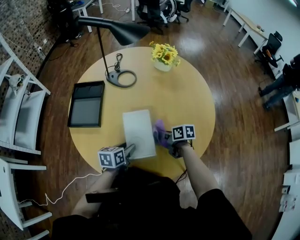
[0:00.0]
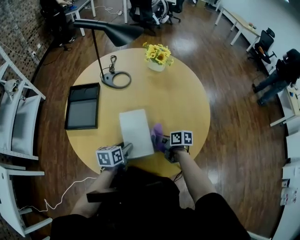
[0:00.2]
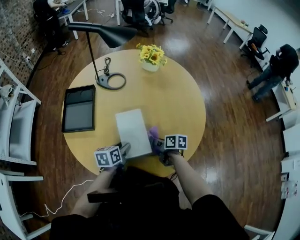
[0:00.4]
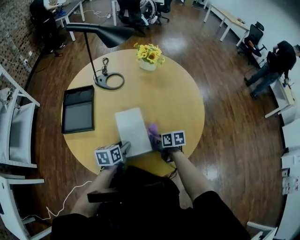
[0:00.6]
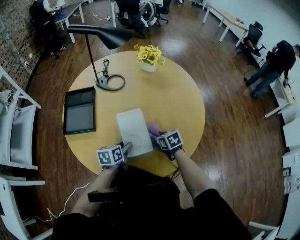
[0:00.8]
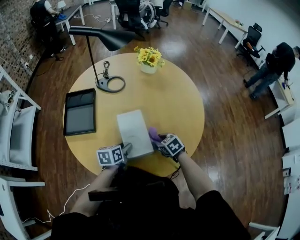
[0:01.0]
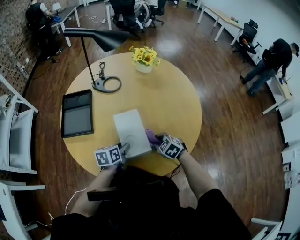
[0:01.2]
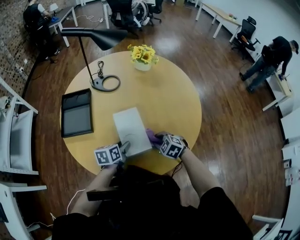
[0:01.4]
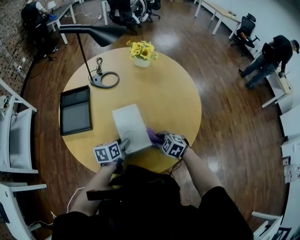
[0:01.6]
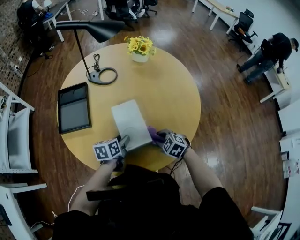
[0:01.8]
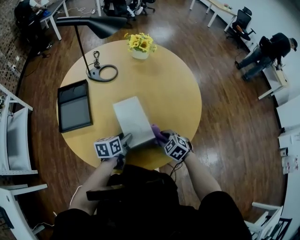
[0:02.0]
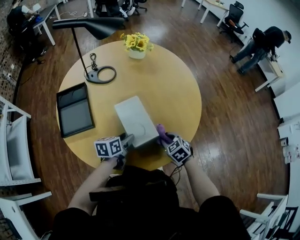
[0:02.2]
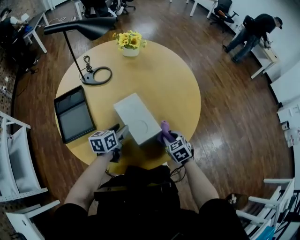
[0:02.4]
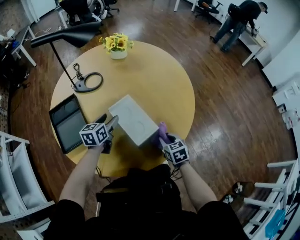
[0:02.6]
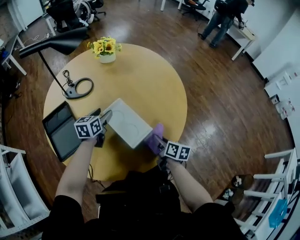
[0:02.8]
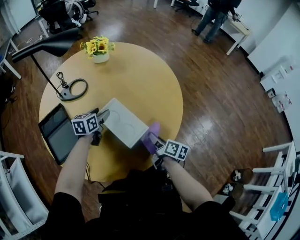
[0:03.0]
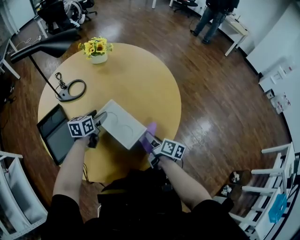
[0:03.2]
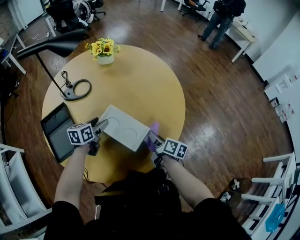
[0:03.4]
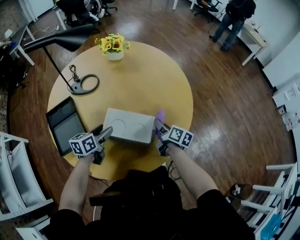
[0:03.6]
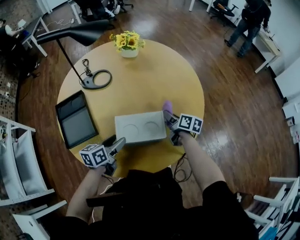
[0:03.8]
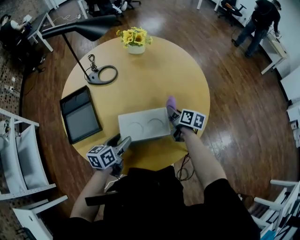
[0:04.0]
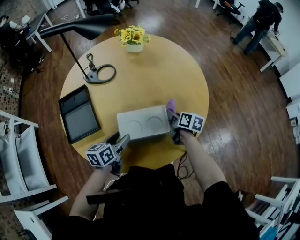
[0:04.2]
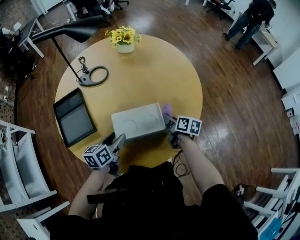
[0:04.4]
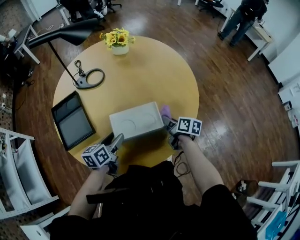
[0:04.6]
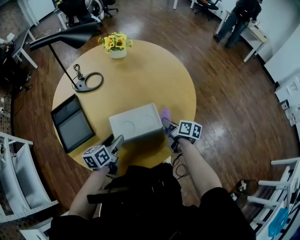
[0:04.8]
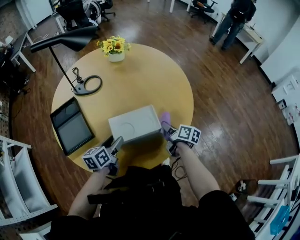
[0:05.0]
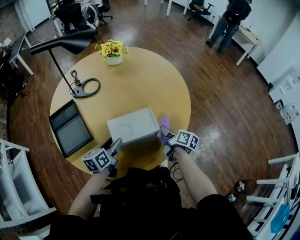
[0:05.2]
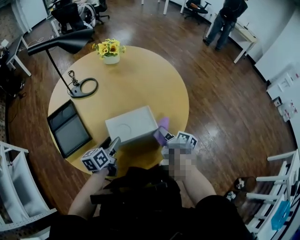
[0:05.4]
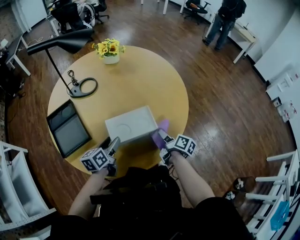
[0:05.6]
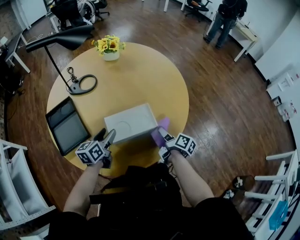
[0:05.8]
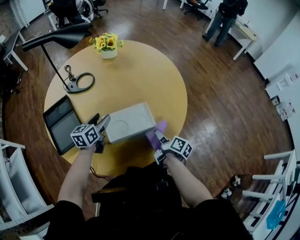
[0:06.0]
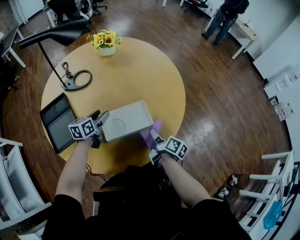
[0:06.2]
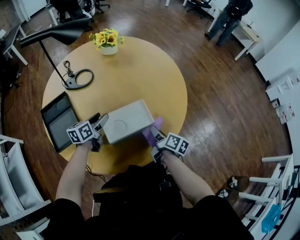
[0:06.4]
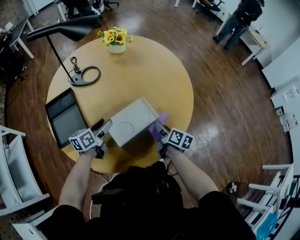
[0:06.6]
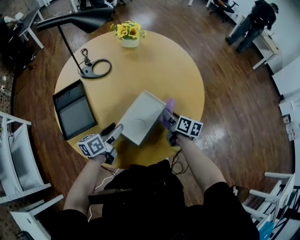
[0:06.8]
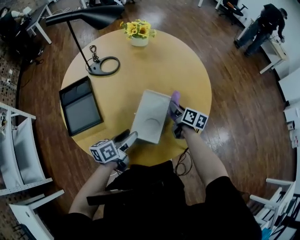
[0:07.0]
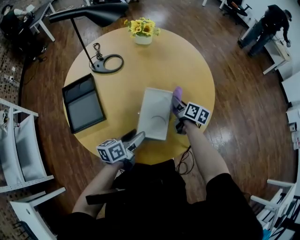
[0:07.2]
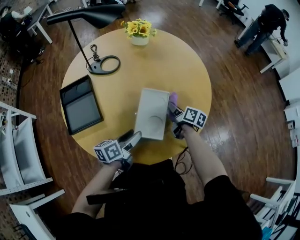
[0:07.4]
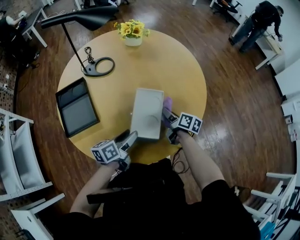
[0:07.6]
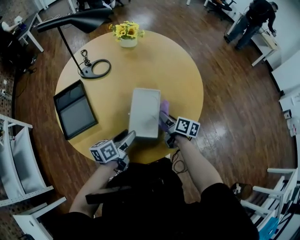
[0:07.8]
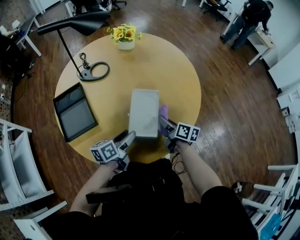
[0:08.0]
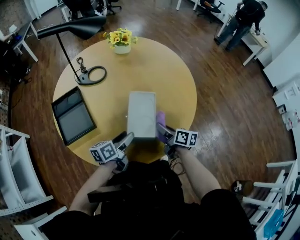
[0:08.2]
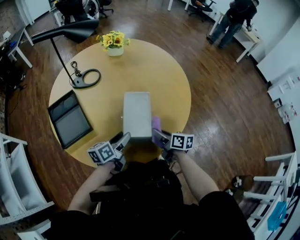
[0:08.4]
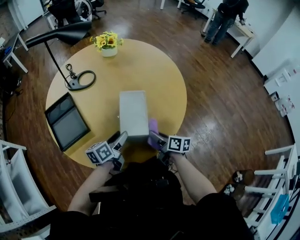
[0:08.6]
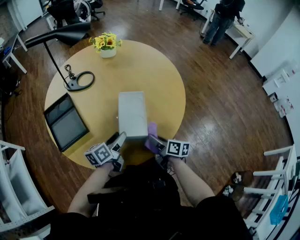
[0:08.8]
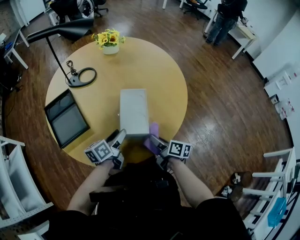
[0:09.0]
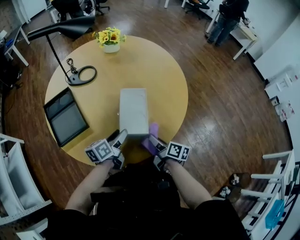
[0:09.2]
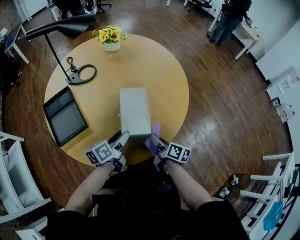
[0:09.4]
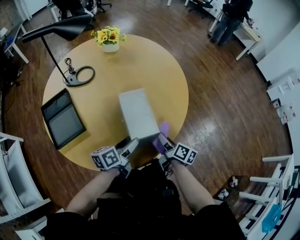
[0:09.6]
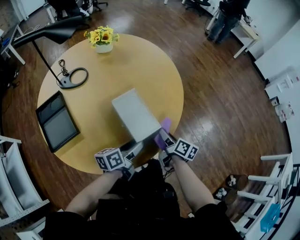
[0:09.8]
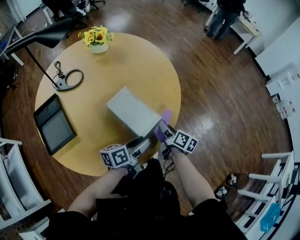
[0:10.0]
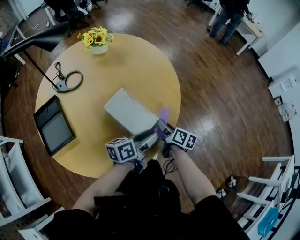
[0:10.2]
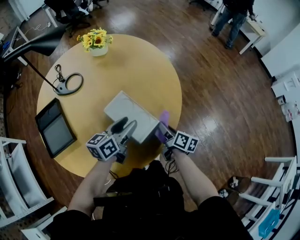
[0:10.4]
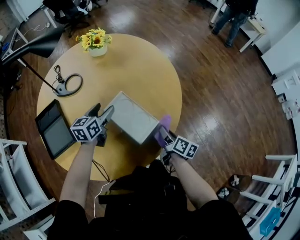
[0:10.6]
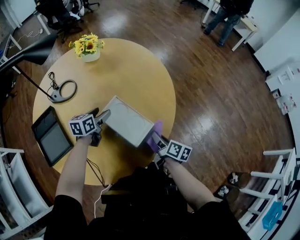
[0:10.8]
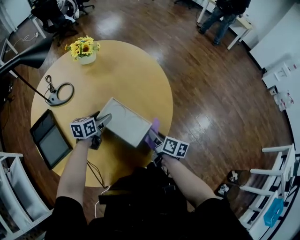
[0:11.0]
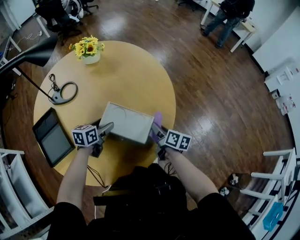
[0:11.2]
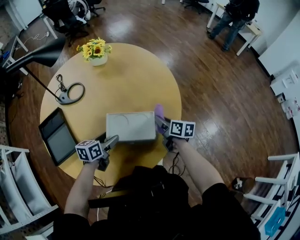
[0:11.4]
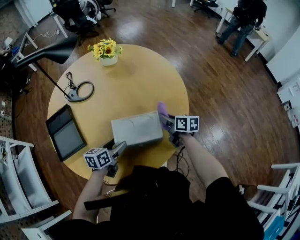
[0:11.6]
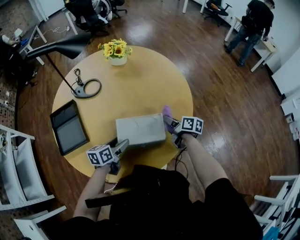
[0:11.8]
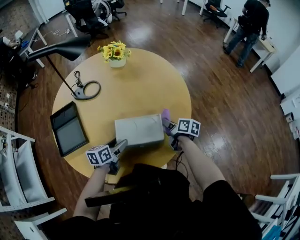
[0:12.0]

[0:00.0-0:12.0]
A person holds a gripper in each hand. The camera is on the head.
0:00.0 to 0:01.6: The right gripper travels backward by approximately 10 cm, and rolls counterclockwise, seen from behind, by some 60 degrees.
0:01.6 to 0:03.0: The right gripper ends up approximately 5 cm from where it was, and rolls clockwise, seen from behind, by about 100 degrees. Meanwhile the left gripper changes place by roughly 15 cm, and rotates about 30 degrees.
0:03.0 to 0:04.4: The left gripper moves backward, some 15 cm, and changes its angle by approximately 20 degrees. The right gripper is displaced forward by approximately 10 cm, and rotates roughly 20 degrees.
0:04.4 to 0:06.0: The left gripper moves forward, approximately 10 cm. Meanwhile the right gripper shifts some 10 cm backward, and swivels about 30 degrees.
0:06.0 to 0:07.6: The left gripper shifts approximately 15 cm backward and to the right, and changes its angle by about 30 degrees; the right gripper heads forward, covering about 10 cm, and swivels some 20 degrees.
0:07.6 to 0:09.0: The right gripper is displaced backward by some 15 cm.
0:09.0 to 0:10.4: The right gripper is displaced forward and to the right by roughly 20 cm; the left gripper heads to the right, forward and upward, covering roughly 20 cm.
0:10.4 to 0:12.0: The right gripper goes about 10 cm forward; the left gripper shifts roughly 15 cm to the left and downward, and travels forward and back again, approximately 10 cm each way.

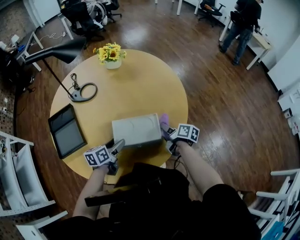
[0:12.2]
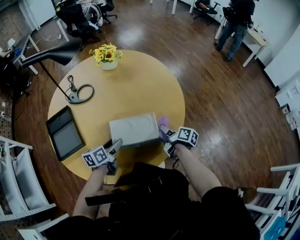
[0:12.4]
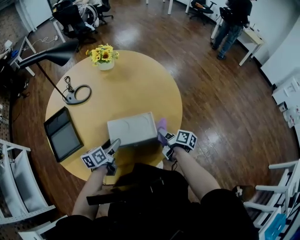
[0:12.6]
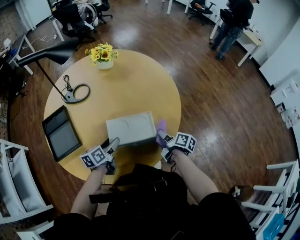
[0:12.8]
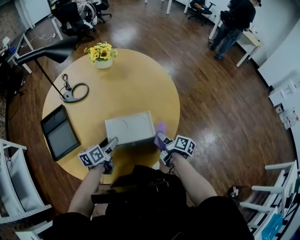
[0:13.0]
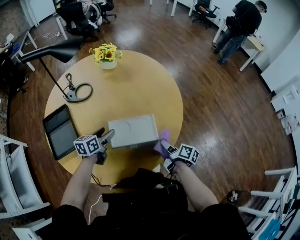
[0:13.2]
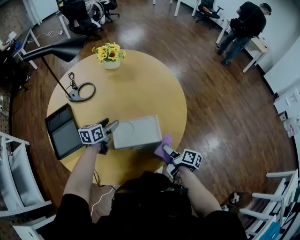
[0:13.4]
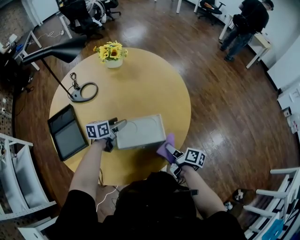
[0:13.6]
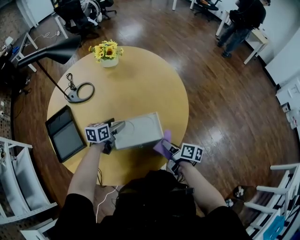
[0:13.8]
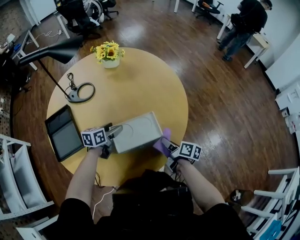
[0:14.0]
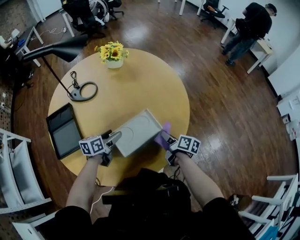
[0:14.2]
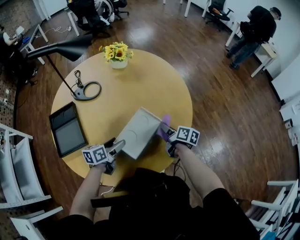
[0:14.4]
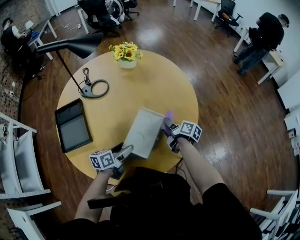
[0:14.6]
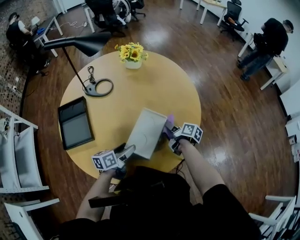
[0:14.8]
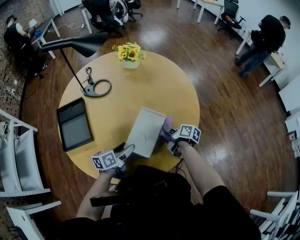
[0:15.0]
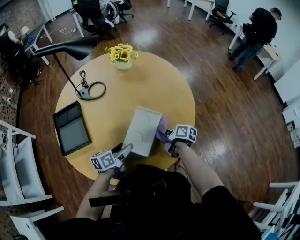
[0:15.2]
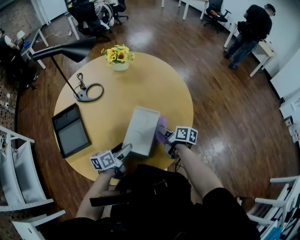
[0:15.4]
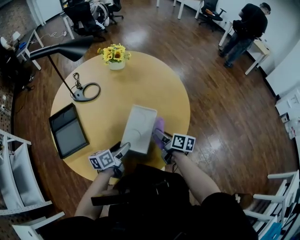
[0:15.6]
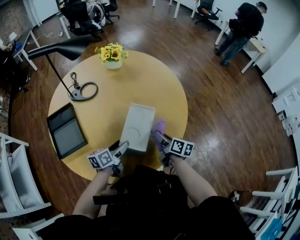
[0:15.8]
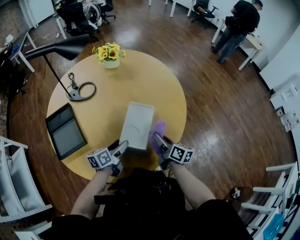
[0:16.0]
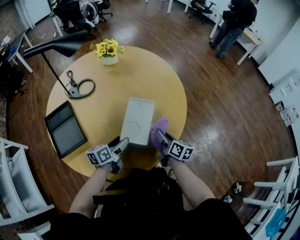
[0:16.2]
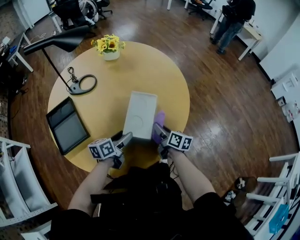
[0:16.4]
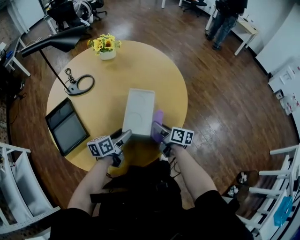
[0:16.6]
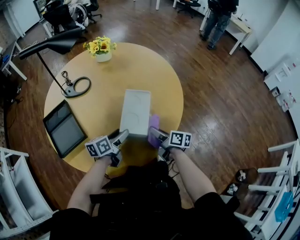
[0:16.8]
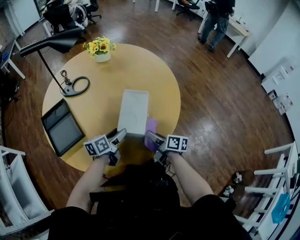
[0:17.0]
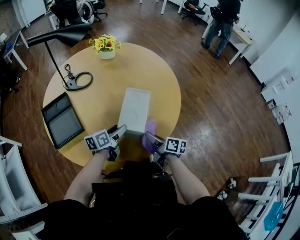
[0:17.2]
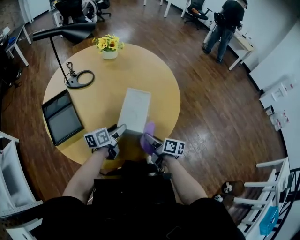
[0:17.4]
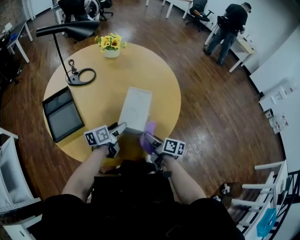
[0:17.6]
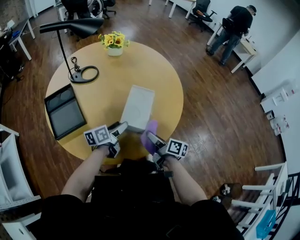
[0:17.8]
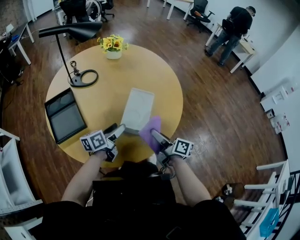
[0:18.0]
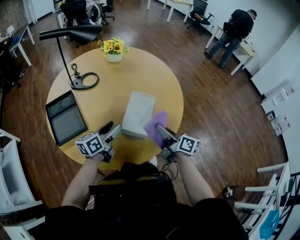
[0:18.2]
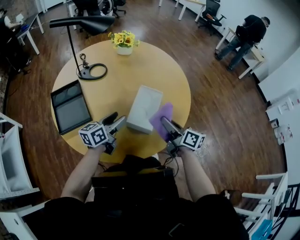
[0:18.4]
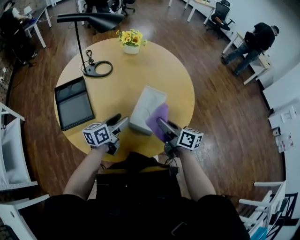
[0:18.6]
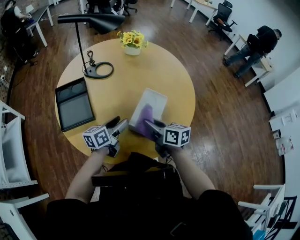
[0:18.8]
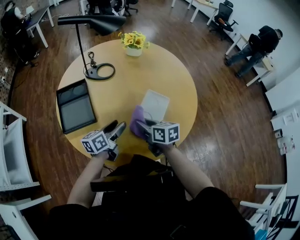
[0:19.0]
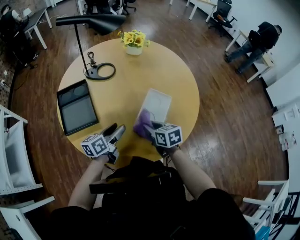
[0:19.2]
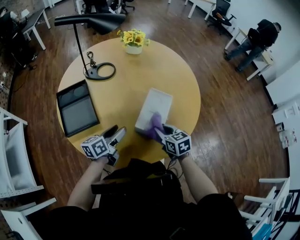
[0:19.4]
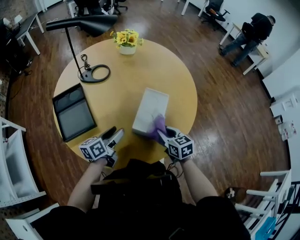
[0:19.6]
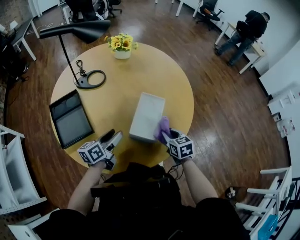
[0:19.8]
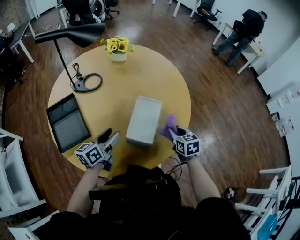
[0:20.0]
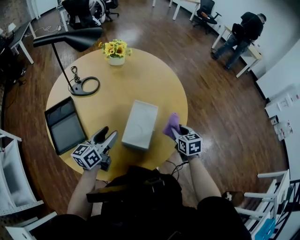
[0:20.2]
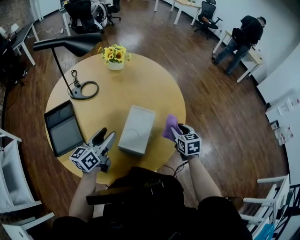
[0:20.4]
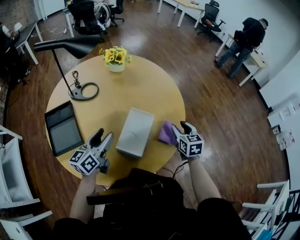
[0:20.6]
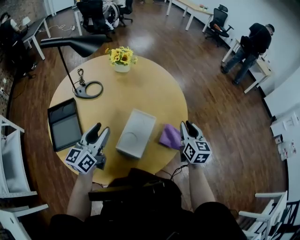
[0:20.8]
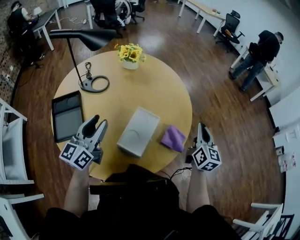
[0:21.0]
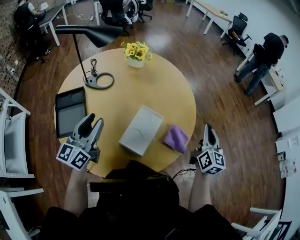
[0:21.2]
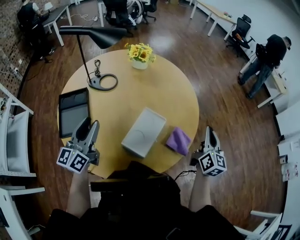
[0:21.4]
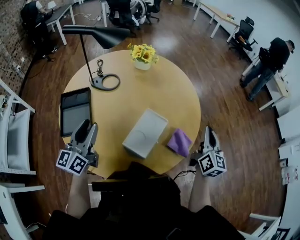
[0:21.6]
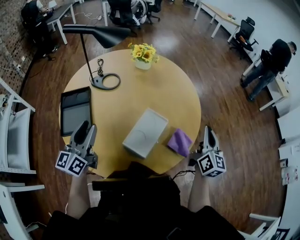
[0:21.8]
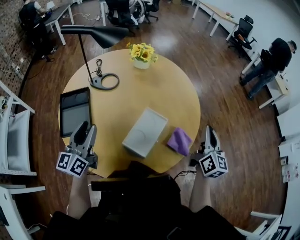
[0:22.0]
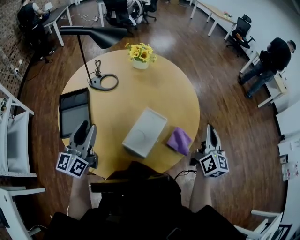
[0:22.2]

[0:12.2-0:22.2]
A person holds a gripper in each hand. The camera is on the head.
0:12.2 to 0:13.6: The left gripper goes about 10 cm forward; the right gripper moves backward, roughly 10 cm.
0:13.6 to 0:15.0: The left gripper shifts some 15 cm backward, and swivels approximately 20 degrees, while the right gripper heads forward, covering roughly 15 cm.
0:15.0 to 0:16.4: The right gripper heads backward, covering roughly 10 cm, and swivels approximately 20 degrees.
0:16.4 to 0:18.0: The right gripper shifts roughly 10 cm backward and upward.
0:18.0 to 0:19.4: The right gripper travels forward by some 5 cm, travels to the left and back again, some 10 cm each way, and rolls counterclockwise, seen from behind, by some 50 degrees. Meanwhile the left gripper moves to the left, roughly 5 cm.
0:19.4 to 0:20.8: The left gripper goes about 15 cm upward, and changes its angle by roughly 30 degrees, while the right gripper is displaced to the right, upward and forward by approximately 25 cm, and swivels approximately 30 degrees.
0:20.8 to 0:22.2: The right gripper shifts some 10 cm upward, turns by approximately 20 degrees, and closes; the left gripper shifts approximately 10 cm to the left and backward.

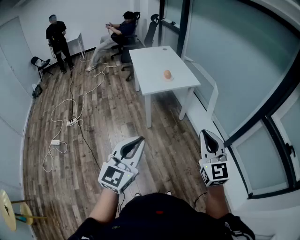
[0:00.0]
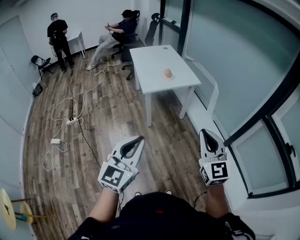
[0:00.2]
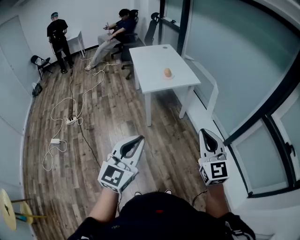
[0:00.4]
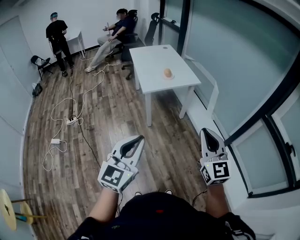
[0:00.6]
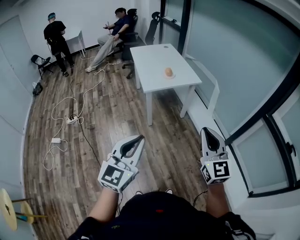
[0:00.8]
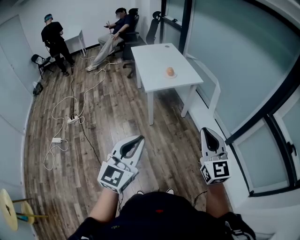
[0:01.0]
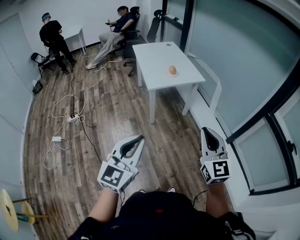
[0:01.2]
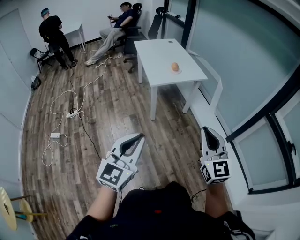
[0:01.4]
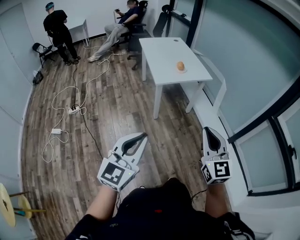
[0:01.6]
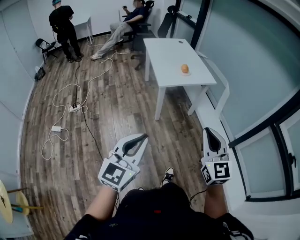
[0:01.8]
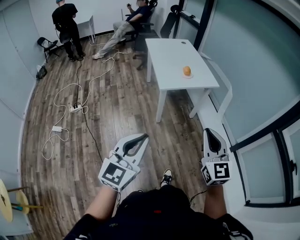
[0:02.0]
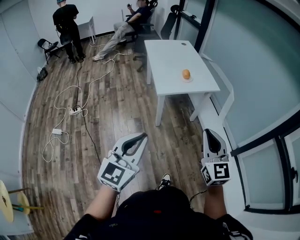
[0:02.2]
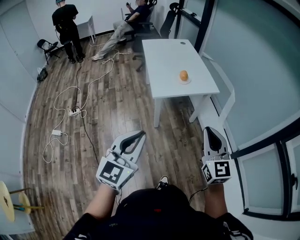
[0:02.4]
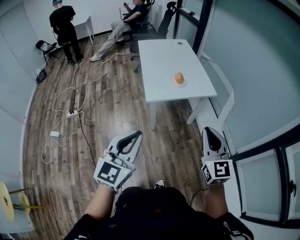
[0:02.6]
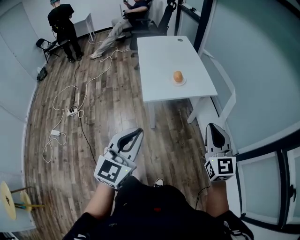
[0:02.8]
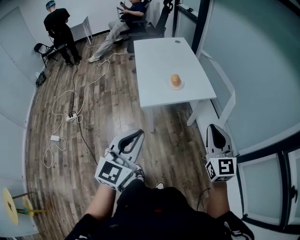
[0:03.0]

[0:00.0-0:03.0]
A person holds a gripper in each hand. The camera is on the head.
0:00.0 to 0:01.6: Both grippers travel together to the left, some 10 cm.
0:01.6 to 0:03.0: The grippers both shift forward by about 35 cm.
